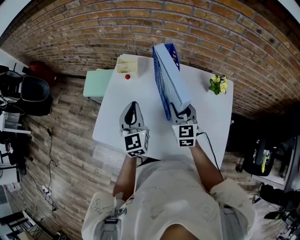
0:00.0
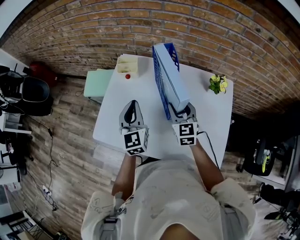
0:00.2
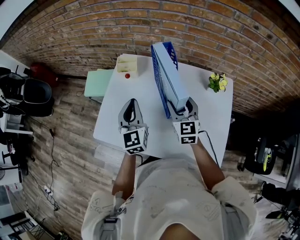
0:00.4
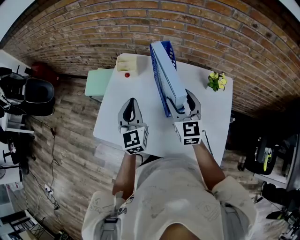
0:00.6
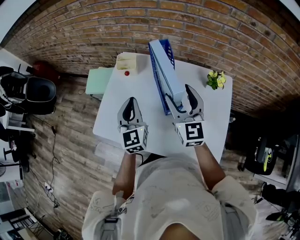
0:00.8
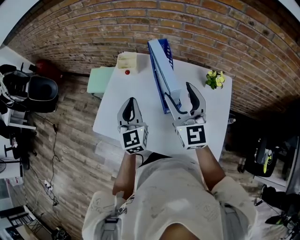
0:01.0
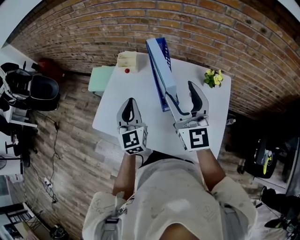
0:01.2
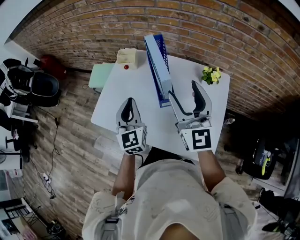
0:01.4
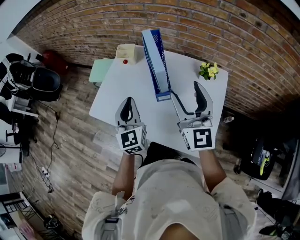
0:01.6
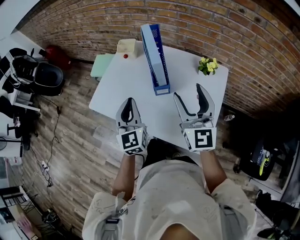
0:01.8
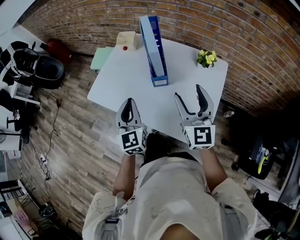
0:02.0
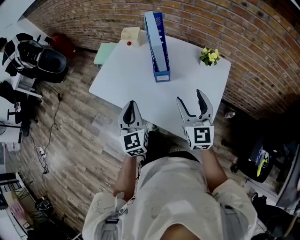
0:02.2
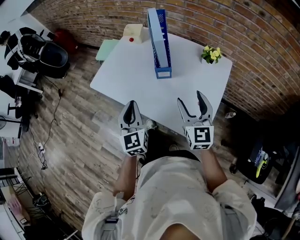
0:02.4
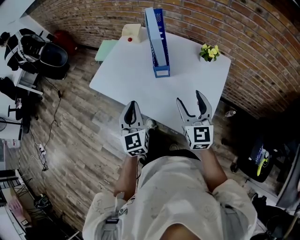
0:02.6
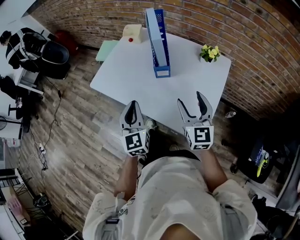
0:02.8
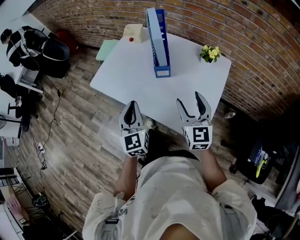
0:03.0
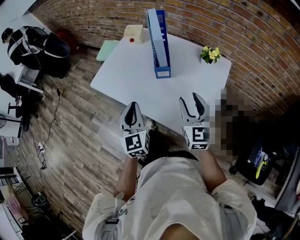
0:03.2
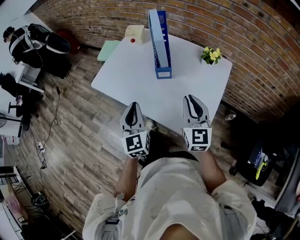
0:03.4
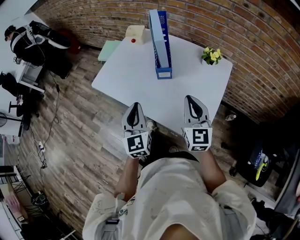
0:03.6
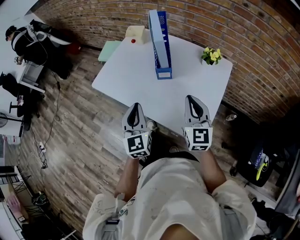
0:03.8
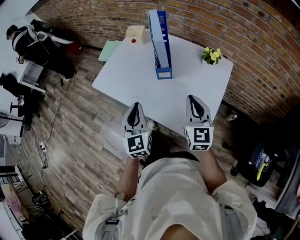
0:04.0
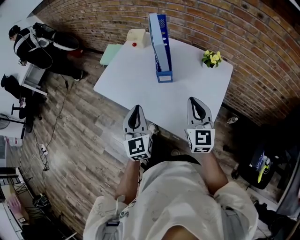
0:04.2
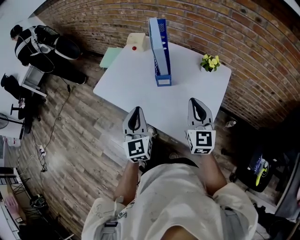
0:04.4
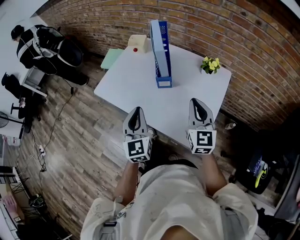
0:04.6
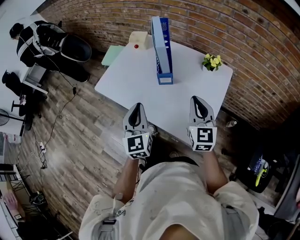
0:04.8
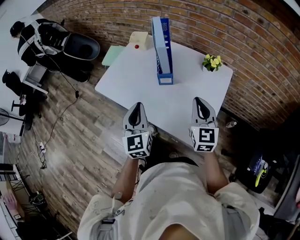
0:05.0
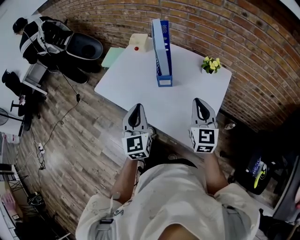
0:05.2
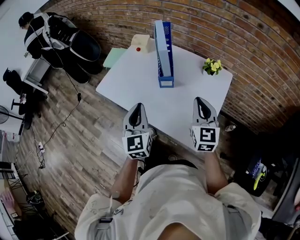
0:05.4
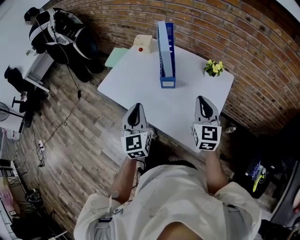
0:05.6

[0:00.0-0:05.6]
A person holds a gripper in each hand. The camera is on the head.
0:00.0 to 0:01.4: The right gripper heads upward and backward, covering roughly 20 cm, changes its angle by roughly 30 degrees, and opens its fingers. The left gripper goes about 10 cm backward.
0:01.4 to 0:02.8: The left gripper goes approximately 20 cm backward; the right gripper is displaced backward and downward by about 20 cm.
0:02.8 to 0:04.2: The right gripper closes its fingers.
0:04.2 to 0:05.6: The grippers make only small movements.

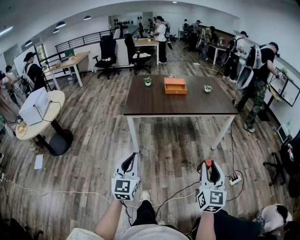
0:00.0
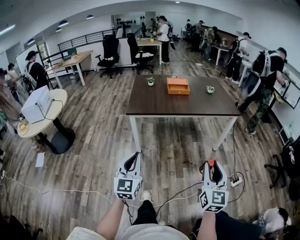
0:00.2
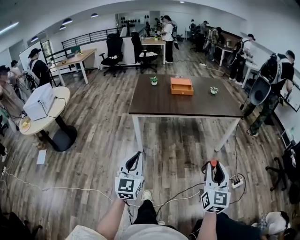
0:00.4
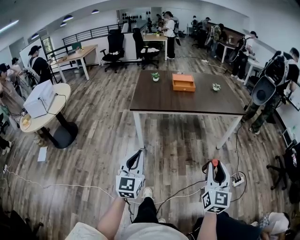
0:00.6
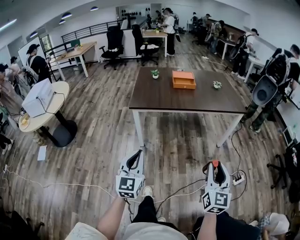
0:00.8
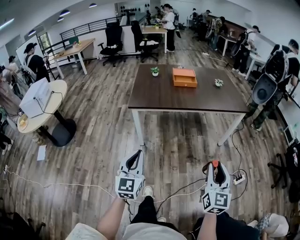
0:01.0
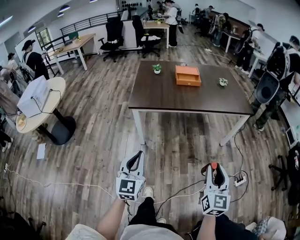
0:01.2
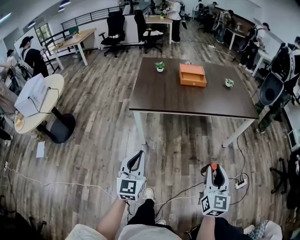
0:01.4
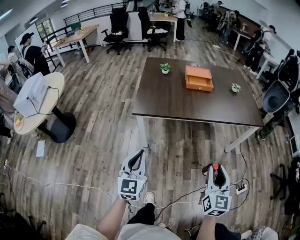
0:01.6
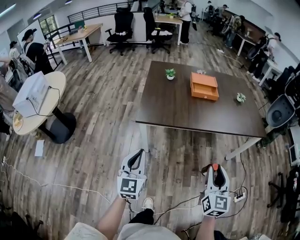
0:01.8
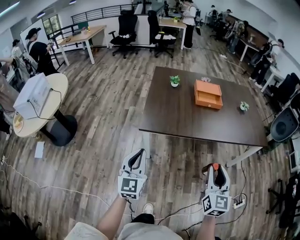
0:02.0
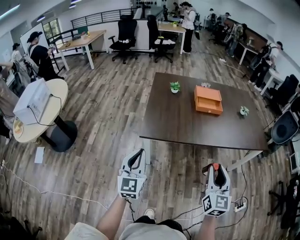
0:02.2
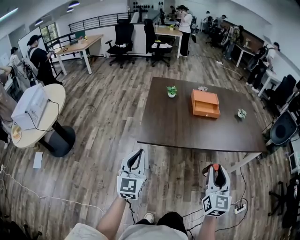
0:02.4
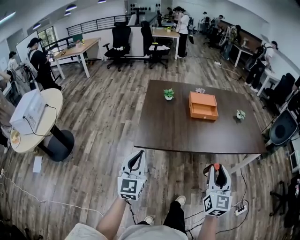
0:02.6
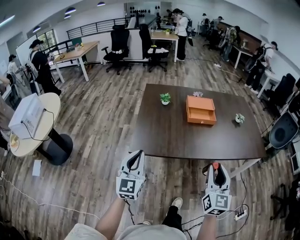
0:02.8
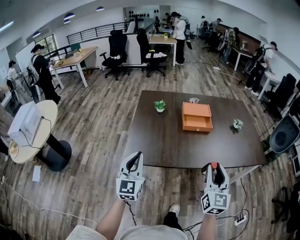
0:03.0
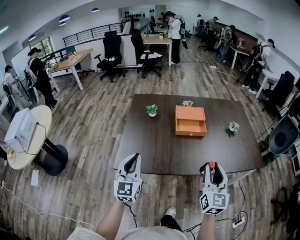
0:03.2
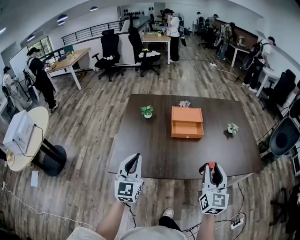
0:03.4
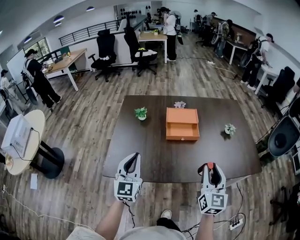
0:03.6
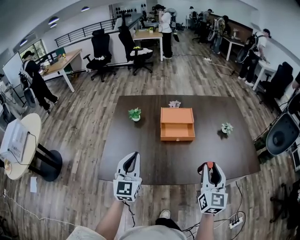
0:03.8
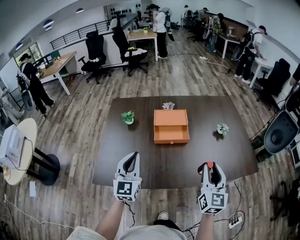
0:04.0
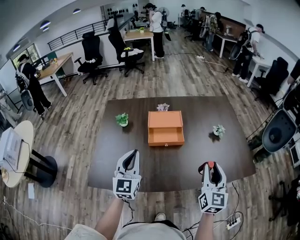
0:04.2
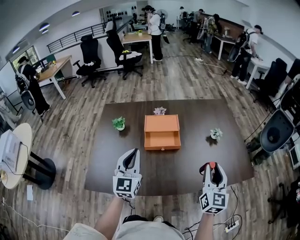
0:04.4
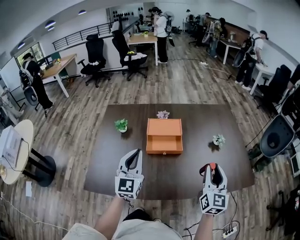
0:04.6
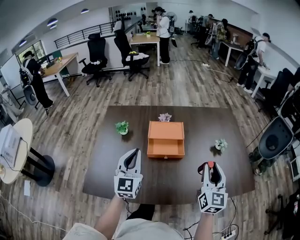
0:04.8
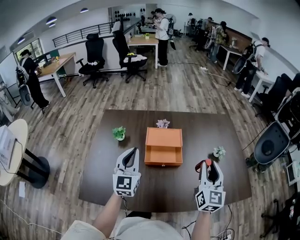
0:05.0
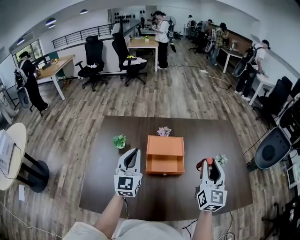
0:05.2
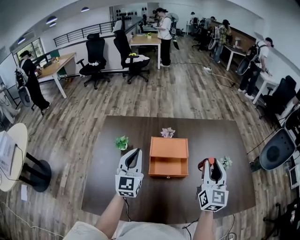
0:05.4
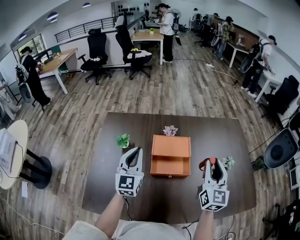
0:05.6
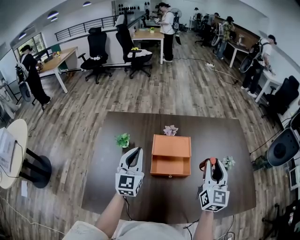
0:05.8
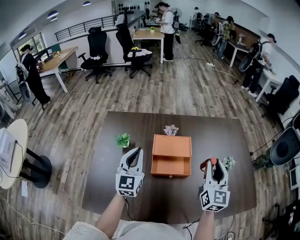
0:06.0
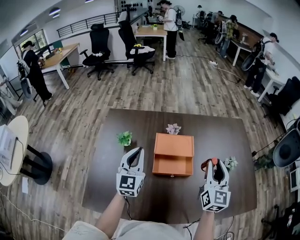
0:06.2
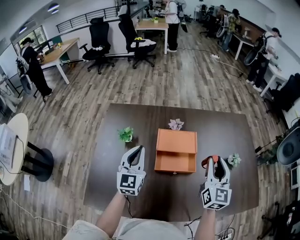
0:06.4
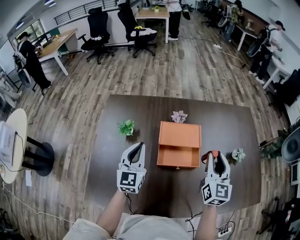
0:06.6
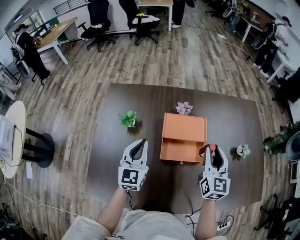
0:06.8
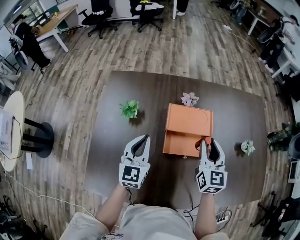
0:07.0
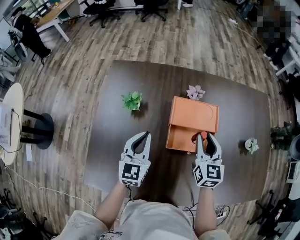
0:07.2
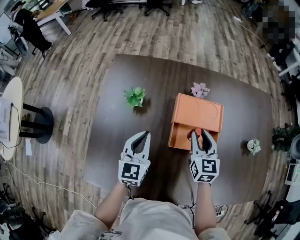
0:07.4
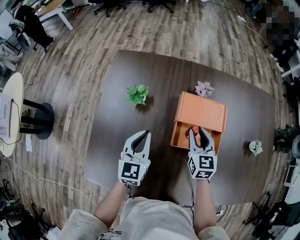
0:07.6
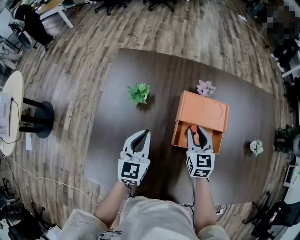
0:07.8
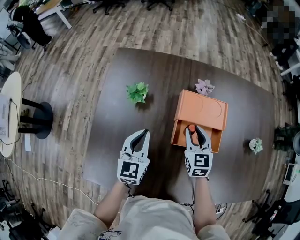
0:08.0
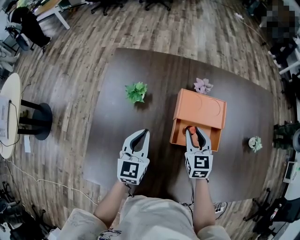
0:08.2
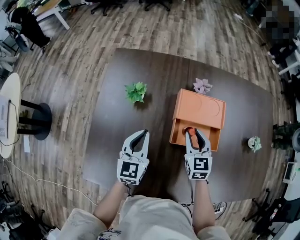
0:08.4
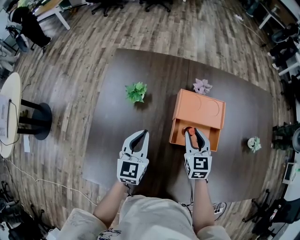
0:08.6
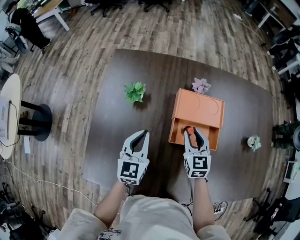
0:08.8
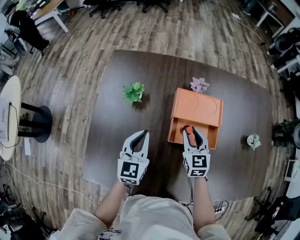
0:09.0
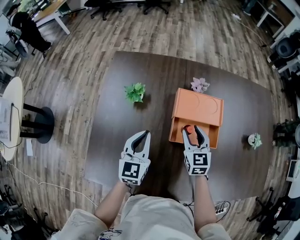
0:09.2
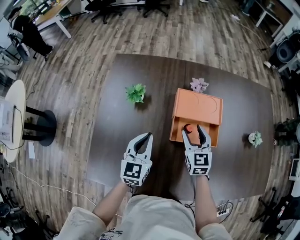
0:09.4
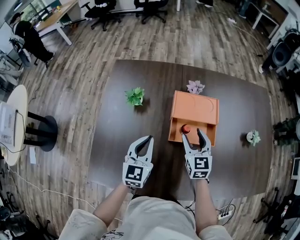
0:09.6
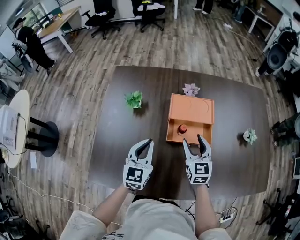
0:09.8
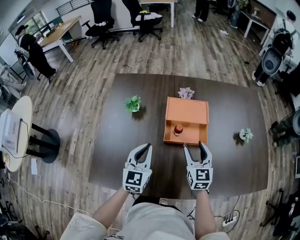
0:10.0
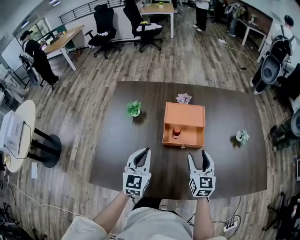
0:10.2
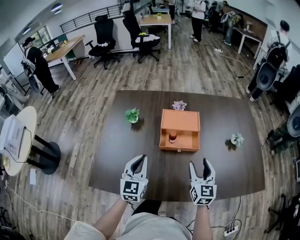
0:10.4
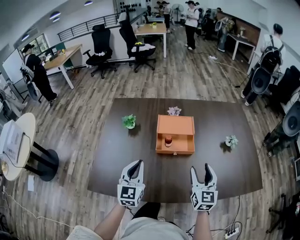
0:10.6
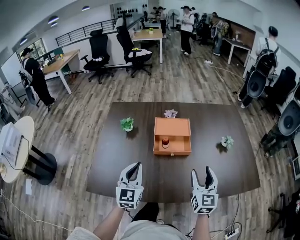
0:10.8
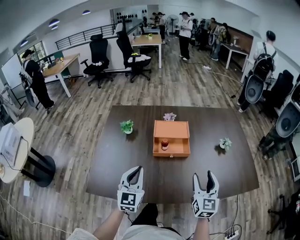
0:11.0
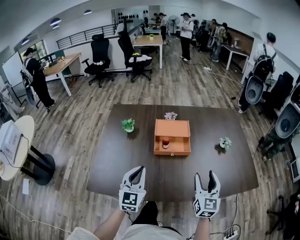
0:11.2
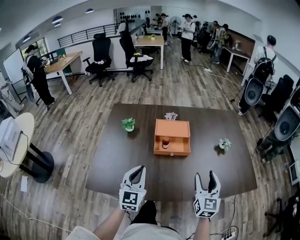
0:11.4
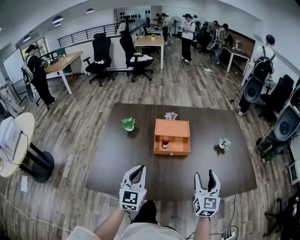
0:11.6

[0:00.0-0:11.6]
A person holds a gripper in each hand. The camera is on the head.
0:00.0 to 0:01.4: Both grippers travel together forward, approximately 15 cm.
0:01.4 to 0:02.8: Both grippers travel together forward, about 30 cm.
0:02.8 to 0:04.4: Both grippers travel together forward and to the right, approximately 40 cm.
0:04.4 to 0:05.8: The right gripper is displaced forward and to the left by about 20 cm; the left gripper travels forward by some 20 cm.
0:05.8 to 0:07.2: The left gripper shifts about 10 cm downward. The right gripper is displaced downward, to the left and forward by about 20 cm, and swivels some 20 degrees.
0:07.2 to 0:08.8: The right gripper goes about 10 cm downward and to the left.
0:08.8 to 0:10.2: The left gripper is displaced backward and upward by approximately 10 cm. Meanwhile the right gripper shifts about 20 cm backward, to the right and upward, and opens its fingers.
0:10.2 to 0:11.6: The right gripper heads backward, to the right and upward, covering about 20 cm. The left gripper moves backward, about 10 cm.

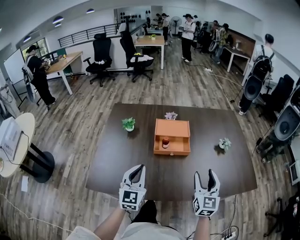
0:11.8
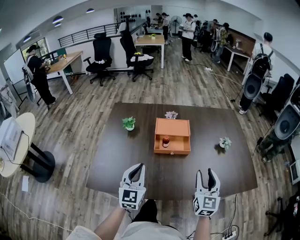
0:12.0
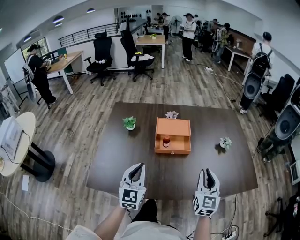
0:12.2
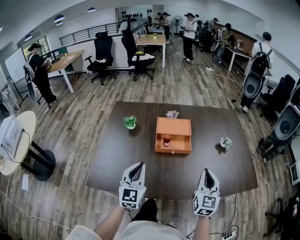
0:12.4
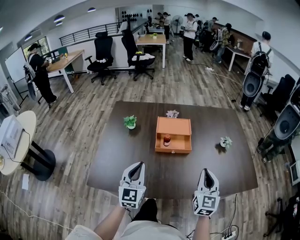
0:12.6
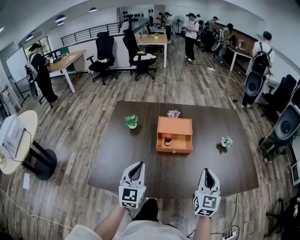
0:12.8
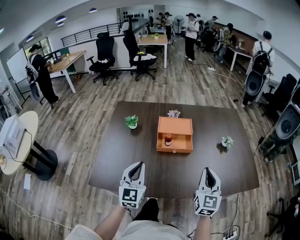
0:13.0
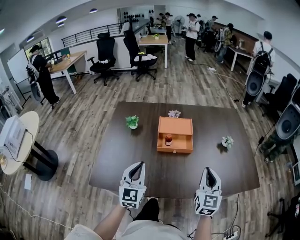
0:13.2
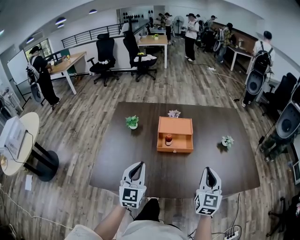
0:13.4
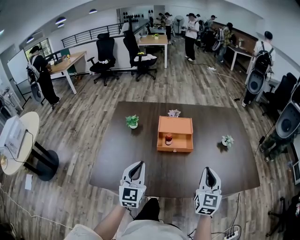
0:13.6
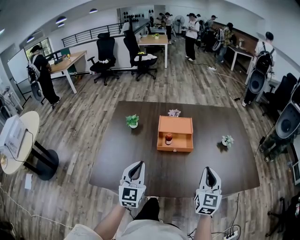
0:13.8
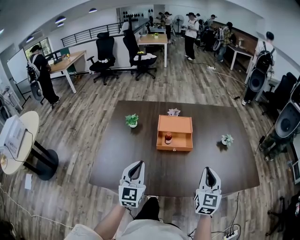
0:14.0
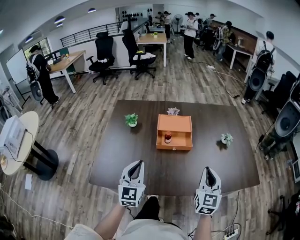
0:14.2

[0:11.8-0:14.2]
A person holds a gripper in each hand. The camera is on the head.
0:11.8 to 0:13.0: The right gripper closes up.
0:13.0 to 0:14.2: The grippers make only small movements.

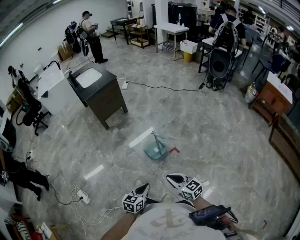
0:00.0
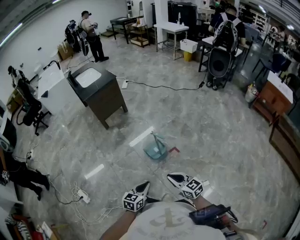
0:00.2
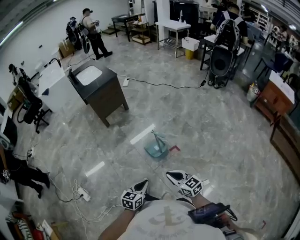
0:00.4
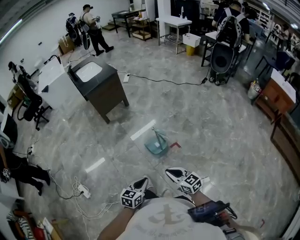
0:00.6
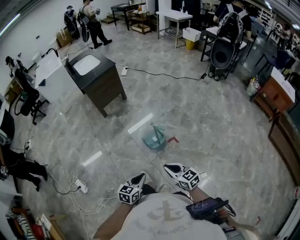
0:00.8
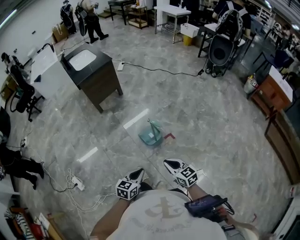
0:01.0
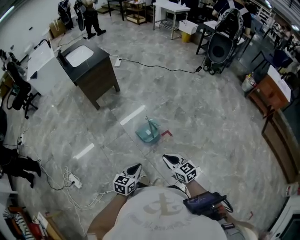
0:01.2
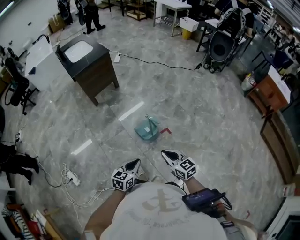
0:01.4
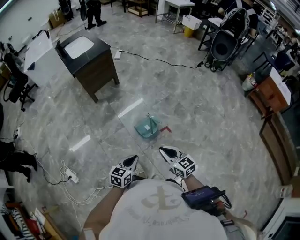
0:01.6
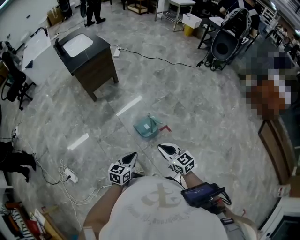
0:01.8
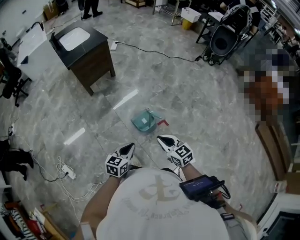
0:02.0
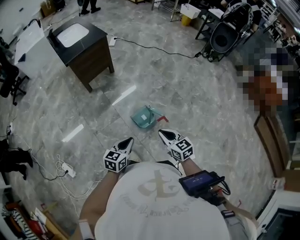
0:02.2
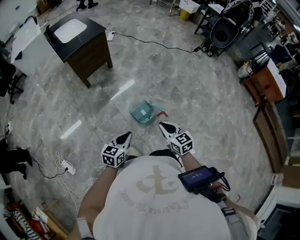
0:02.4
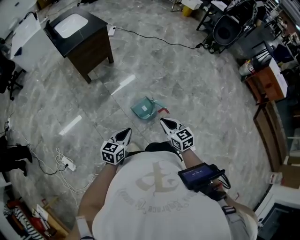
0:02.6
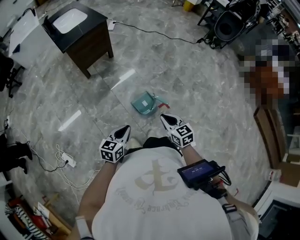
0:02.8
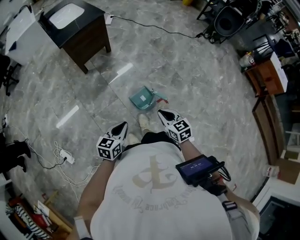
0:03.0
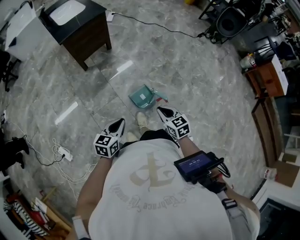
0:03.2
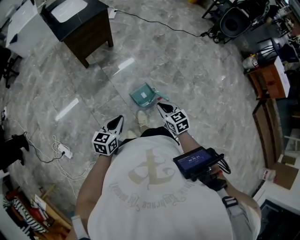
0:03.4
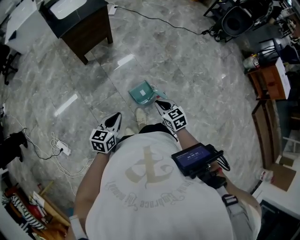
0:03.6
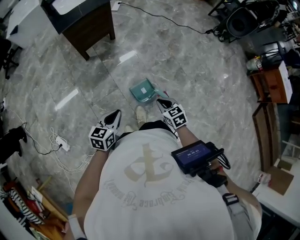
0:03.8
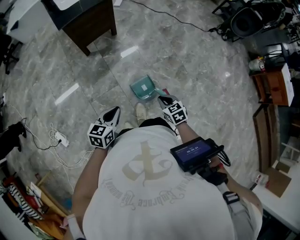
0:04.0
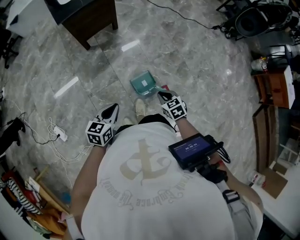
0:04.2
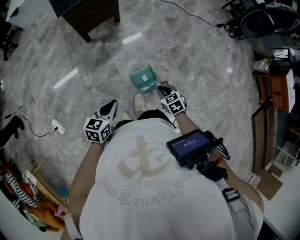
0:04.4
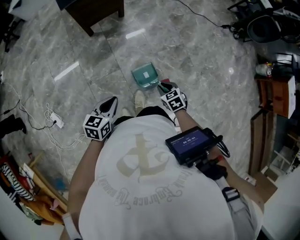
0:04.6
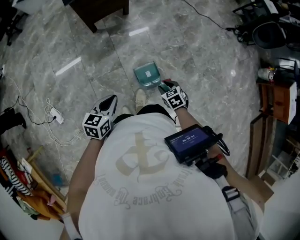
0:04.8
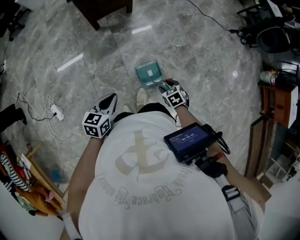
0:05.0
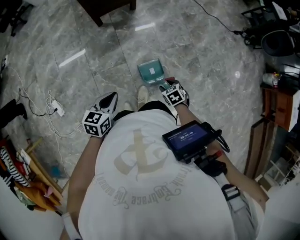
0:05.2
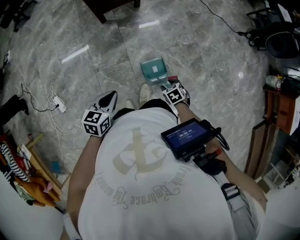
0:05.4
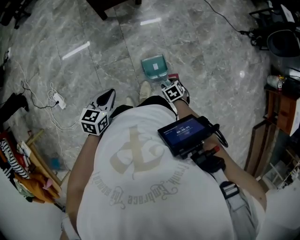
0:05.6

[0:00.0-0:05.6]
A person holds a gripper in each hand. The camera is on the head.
0:00.0 to 0:01.4: The grippers both shift forward by approximately 10 cm.
0:01.4 to 0:02.8: The left gripper heads forward and to the left, covering some 15 cm. Meanwhile the right gripper heads forward, covering roughly 10 cm.
0:02.8 to 0:04.2: The left gripper heads forward, covering about 5 cm. The right gripper heads downward and forward, covering about 15 cm, and swivels about 20 degrees.
0:04.2 to 0:05.6: The right gripper shifts about 10 cm downward, swivels roughly 30 degrees, and opens its fingers.
